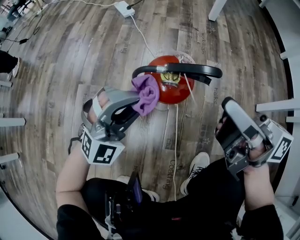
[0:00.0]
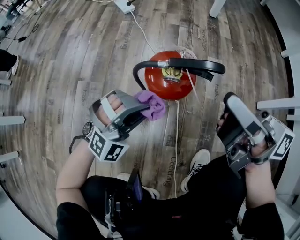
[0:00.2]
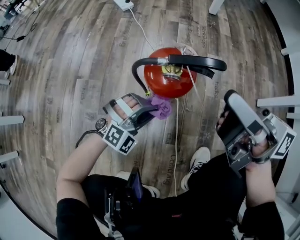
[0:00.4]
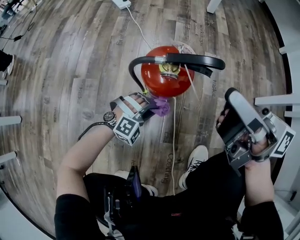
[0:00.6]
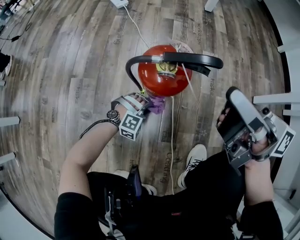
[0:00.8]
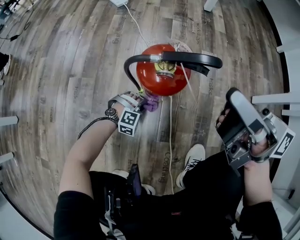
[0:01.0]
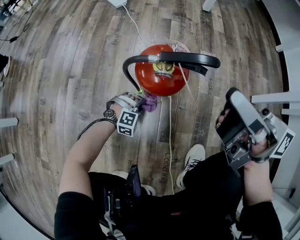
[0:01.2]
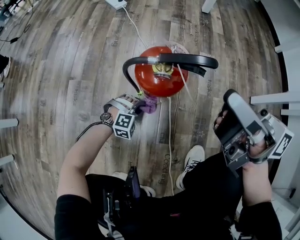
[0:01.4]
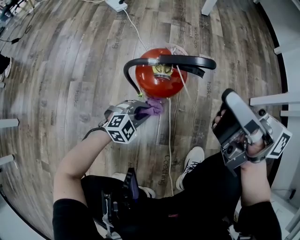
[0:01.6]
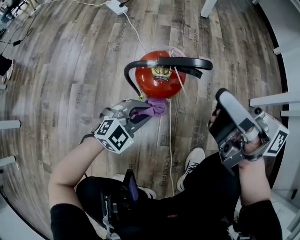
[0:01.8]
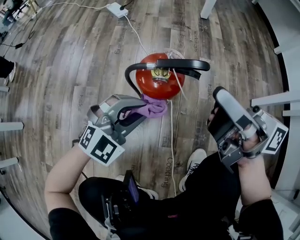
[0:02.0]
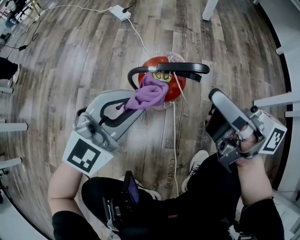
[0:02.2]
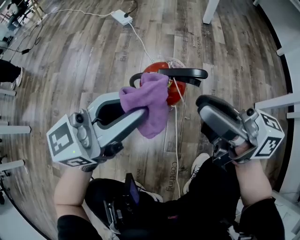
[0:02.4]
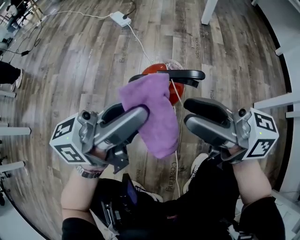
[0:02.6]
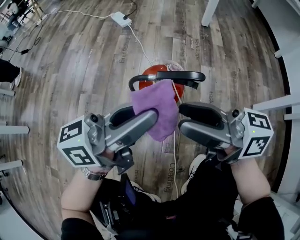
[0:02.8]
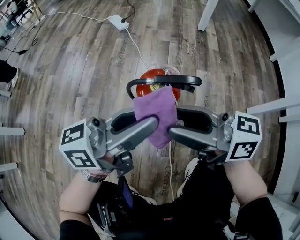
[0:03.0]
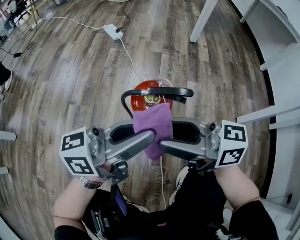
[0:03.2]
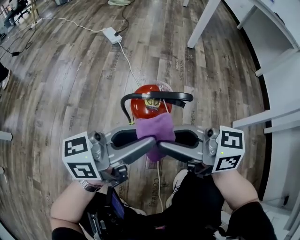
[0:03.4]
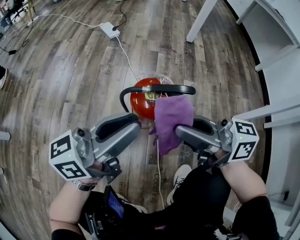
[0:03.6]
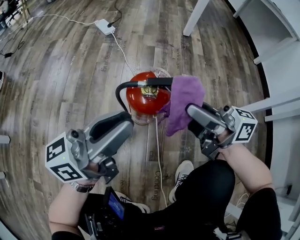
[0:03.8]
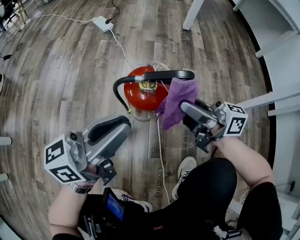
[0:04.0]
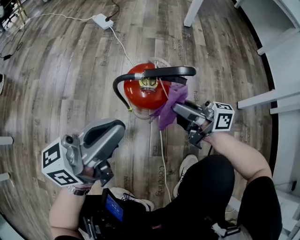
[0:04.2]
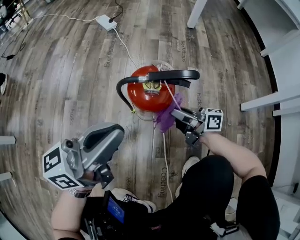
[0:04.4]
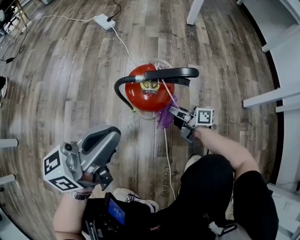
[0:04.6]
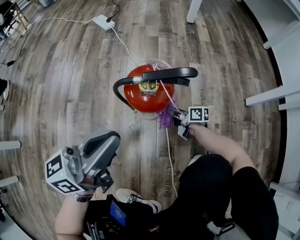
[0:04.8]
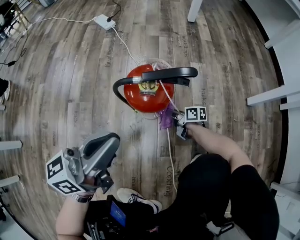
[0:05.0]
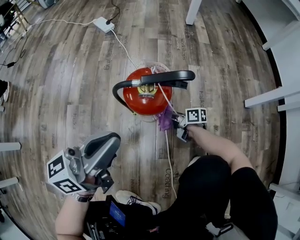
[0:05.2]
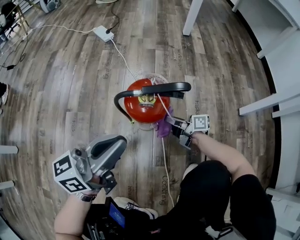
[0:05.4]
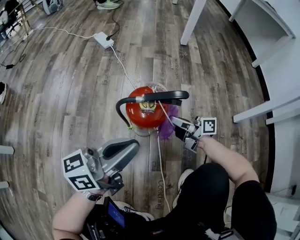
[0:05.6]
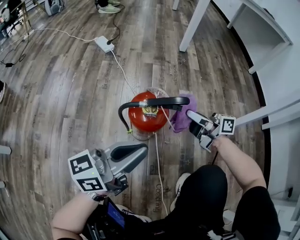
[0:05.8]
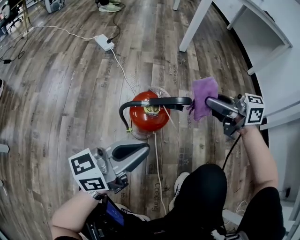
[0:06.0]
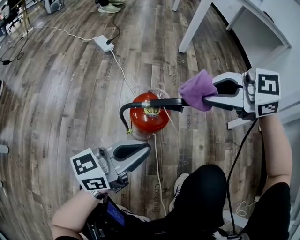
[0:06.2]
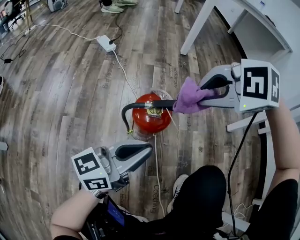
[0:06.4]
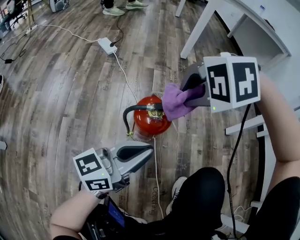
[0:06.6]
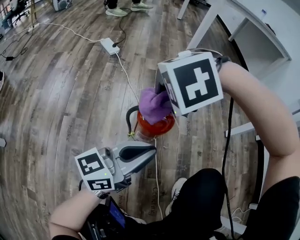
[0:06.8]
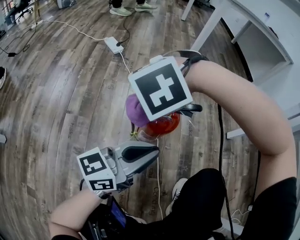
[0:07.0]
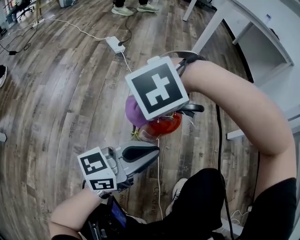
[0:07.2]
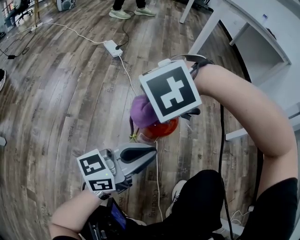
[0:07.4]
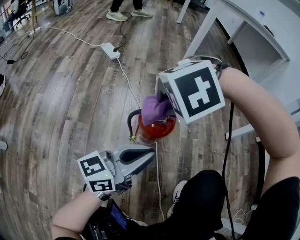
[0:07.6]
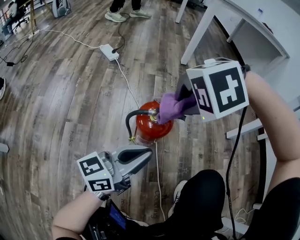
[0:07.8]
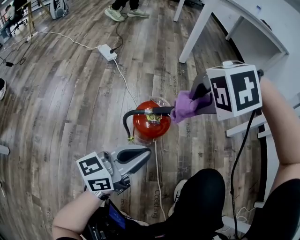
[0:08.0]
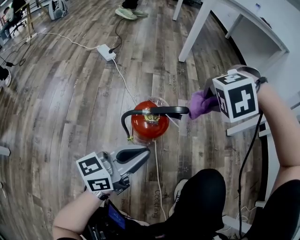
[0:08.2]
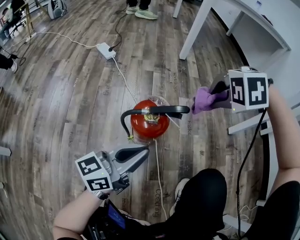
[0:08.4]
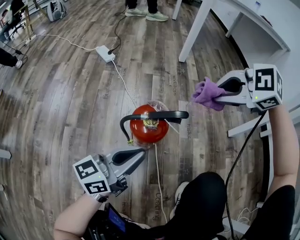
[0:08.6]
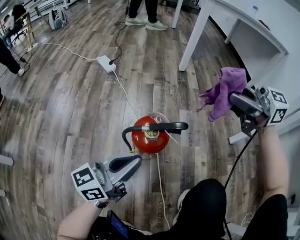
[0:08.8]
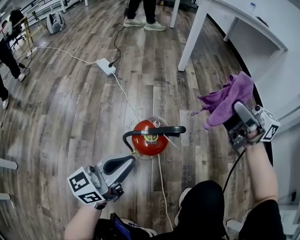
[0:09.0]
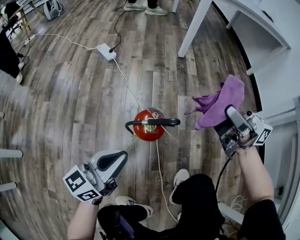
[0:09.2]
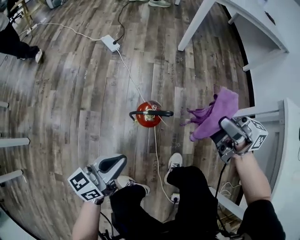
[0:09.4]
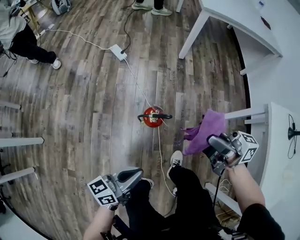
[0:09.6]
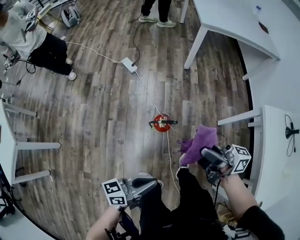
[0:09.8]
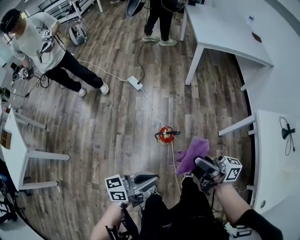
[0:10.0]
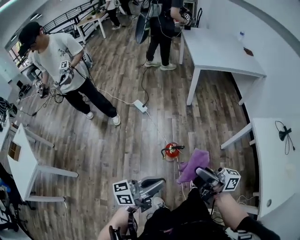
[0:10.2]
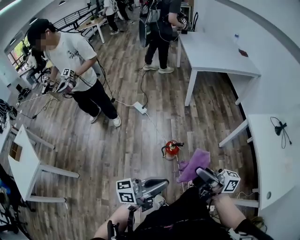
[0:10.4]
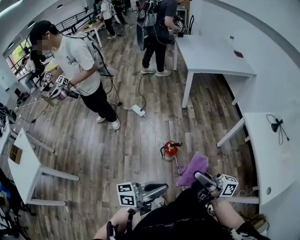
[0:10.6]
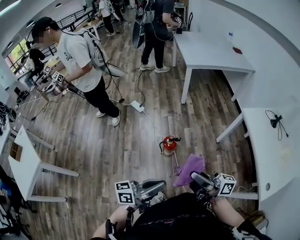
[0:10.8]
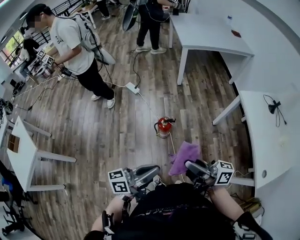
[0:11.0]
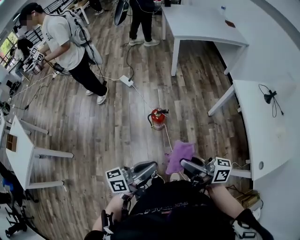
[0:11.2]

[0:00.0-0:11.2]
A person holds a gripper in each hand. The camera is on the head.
0:00.0 to 0:01.6: The left gripper moves downward, approximately 25 cm, and points its fingers approximately 30 degrees further downward.
0:01.6 to 0:03.2: The left gripper travels upward by some 35 cm, and points its fingers roughly 60 degrees further upward, while the right gripper shifts by roughly 10 cm, turns by approximately 30 degrees, and opens.
0:03.2 to 0:04.8: The right gripper travels downward by roughly 40 cm, rotates approximately 40 degrees, and closes up. The left gripper changes place by some 10 cm.
0:04.8 to 0:06.4: The right gripper goes some 40 cm upward, and rotates around the line of its fingers by approximately 90 degrees, counterclockwise from behind. The left gripper changes place by roughly 5 cm.
0:06.4 to 0:08.0: The right gripper turns by about 30 degrees.
0:08.0 to 0:09.6: The grippers both shift upward by some 35 cm. The right gripper angles its fingers upward, by approximately 100 degrees.
0:09.6 to 0:11.2: The right gripper goes roughly 35 cm backward and upward; the left gripper moves upward and backward, approximately 35 cm.

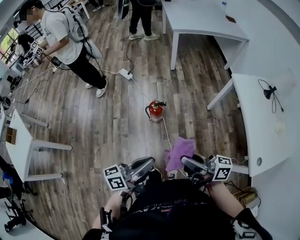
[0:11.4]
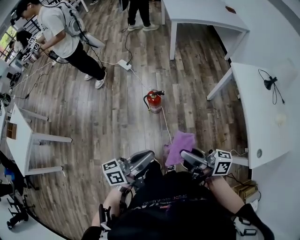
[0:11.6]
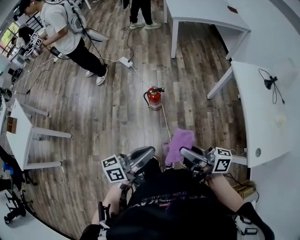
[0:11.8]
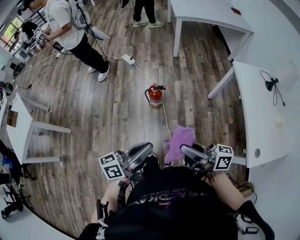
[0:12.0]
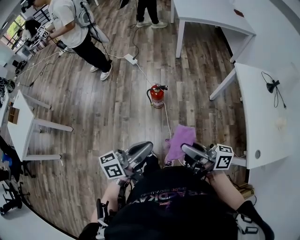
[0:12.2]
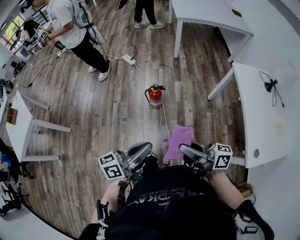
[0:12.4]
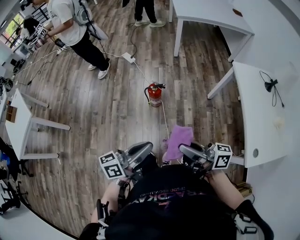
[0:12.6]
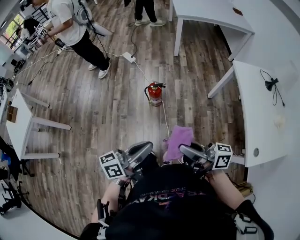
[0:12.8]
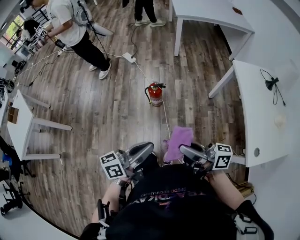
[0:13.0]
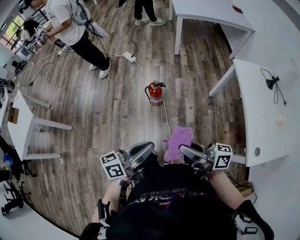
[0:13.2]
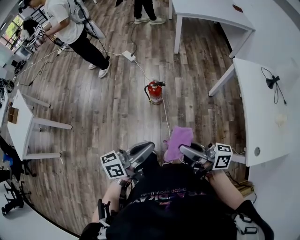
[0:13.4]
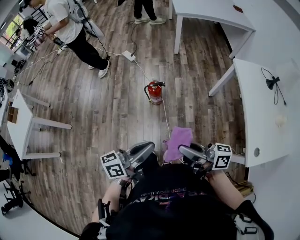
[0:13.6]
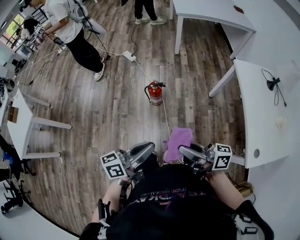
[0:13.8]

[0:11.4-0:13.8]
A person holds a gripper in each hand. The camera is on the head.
0:11.4 to 0:12.6: The right gripper changes place by some 5 cm, while the left gripper shifts by roughly 5 cm.
0:12.6 to 0:13.8: The grippers move only a little.

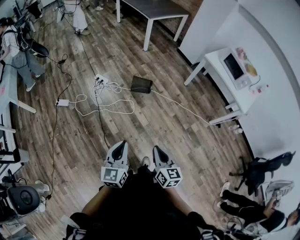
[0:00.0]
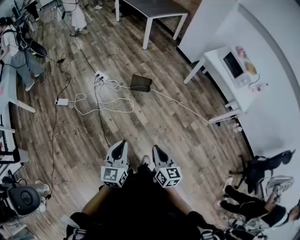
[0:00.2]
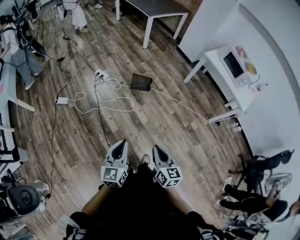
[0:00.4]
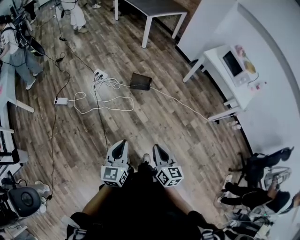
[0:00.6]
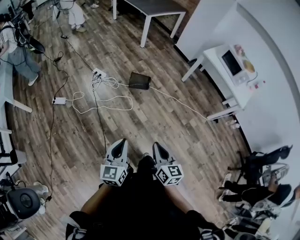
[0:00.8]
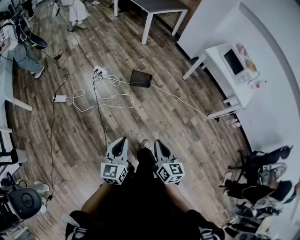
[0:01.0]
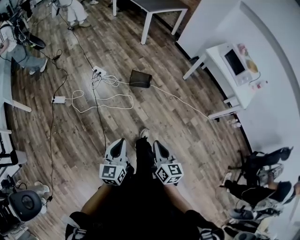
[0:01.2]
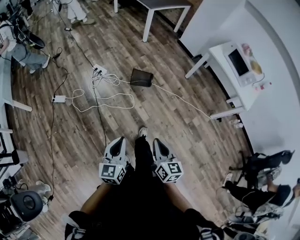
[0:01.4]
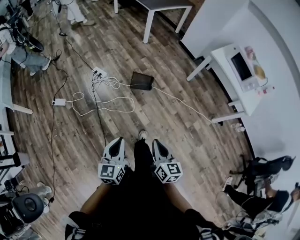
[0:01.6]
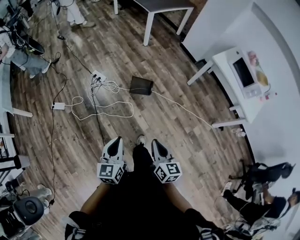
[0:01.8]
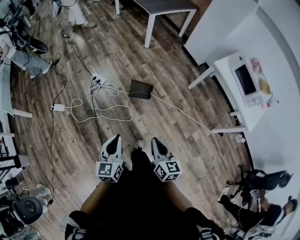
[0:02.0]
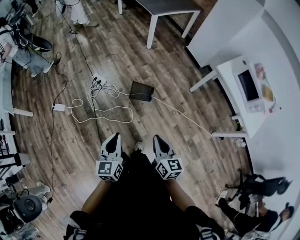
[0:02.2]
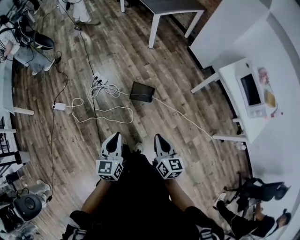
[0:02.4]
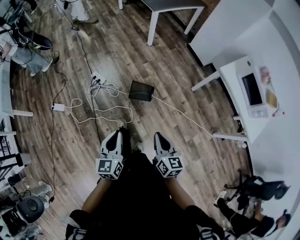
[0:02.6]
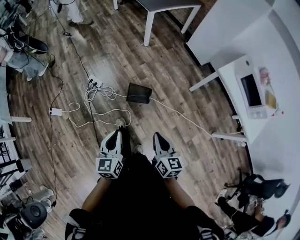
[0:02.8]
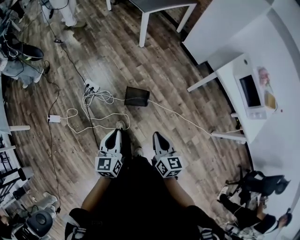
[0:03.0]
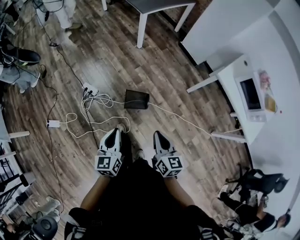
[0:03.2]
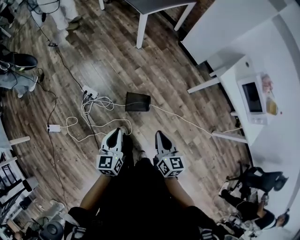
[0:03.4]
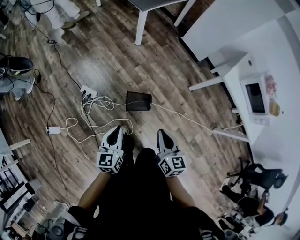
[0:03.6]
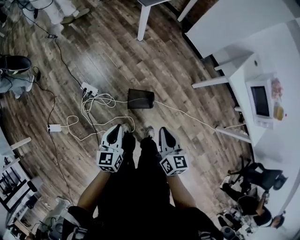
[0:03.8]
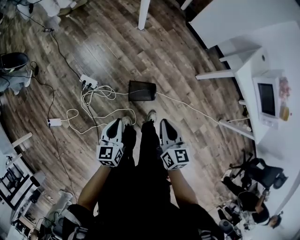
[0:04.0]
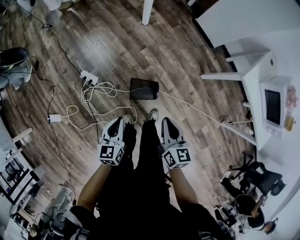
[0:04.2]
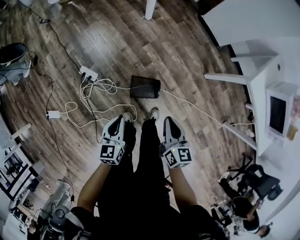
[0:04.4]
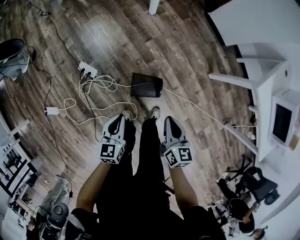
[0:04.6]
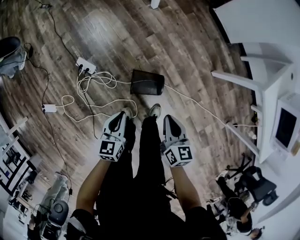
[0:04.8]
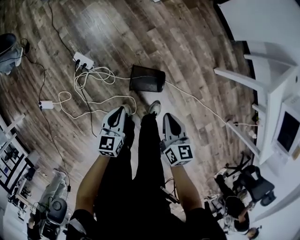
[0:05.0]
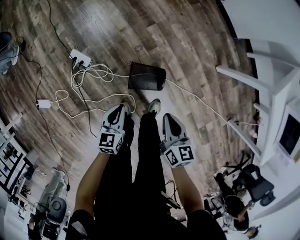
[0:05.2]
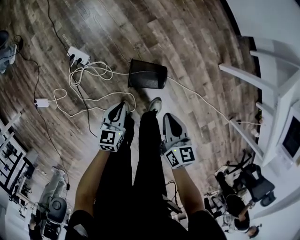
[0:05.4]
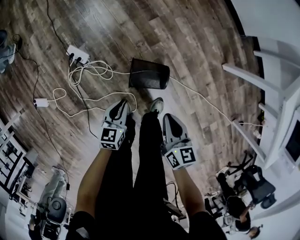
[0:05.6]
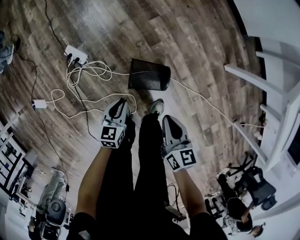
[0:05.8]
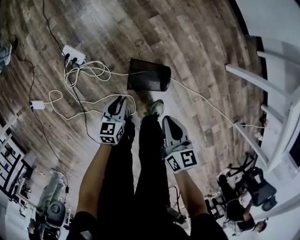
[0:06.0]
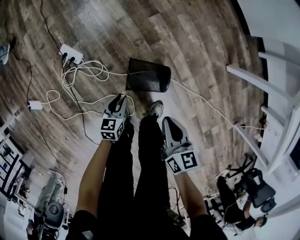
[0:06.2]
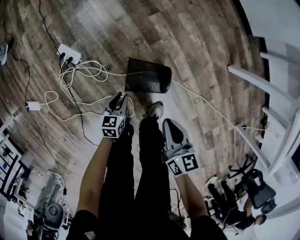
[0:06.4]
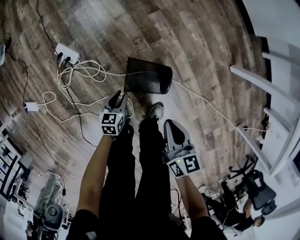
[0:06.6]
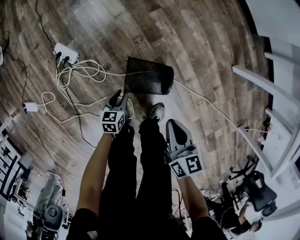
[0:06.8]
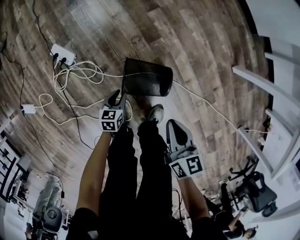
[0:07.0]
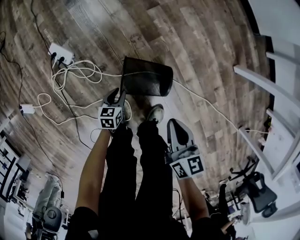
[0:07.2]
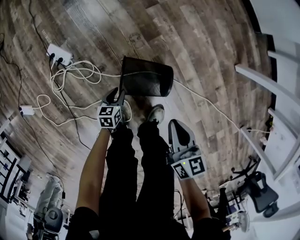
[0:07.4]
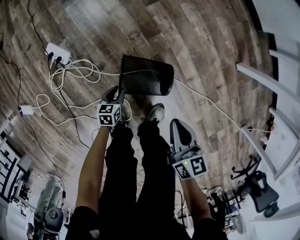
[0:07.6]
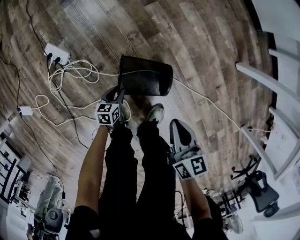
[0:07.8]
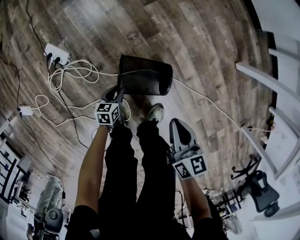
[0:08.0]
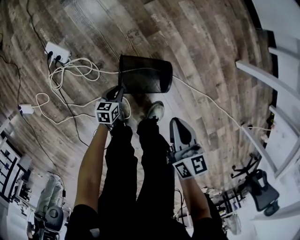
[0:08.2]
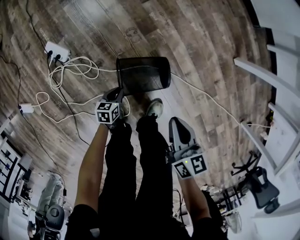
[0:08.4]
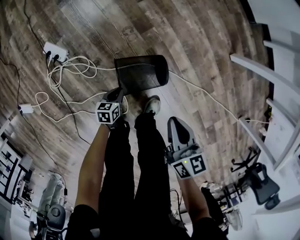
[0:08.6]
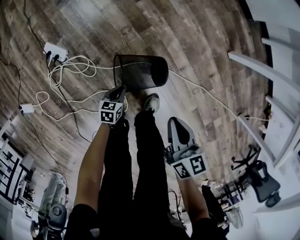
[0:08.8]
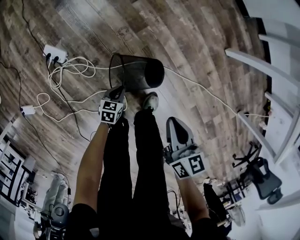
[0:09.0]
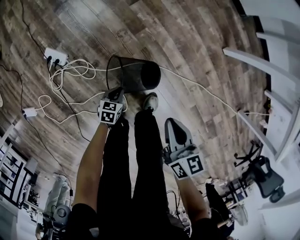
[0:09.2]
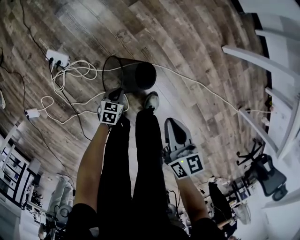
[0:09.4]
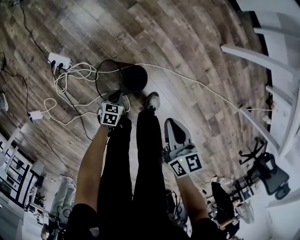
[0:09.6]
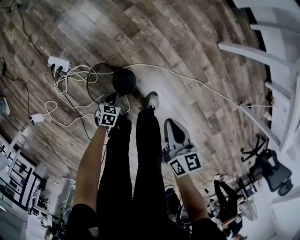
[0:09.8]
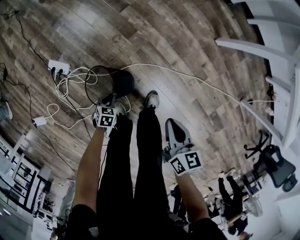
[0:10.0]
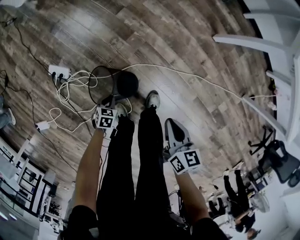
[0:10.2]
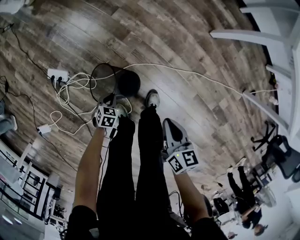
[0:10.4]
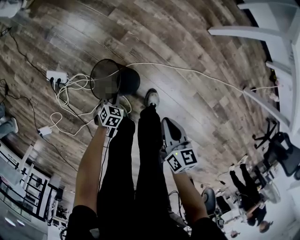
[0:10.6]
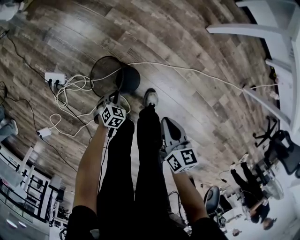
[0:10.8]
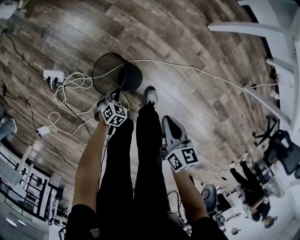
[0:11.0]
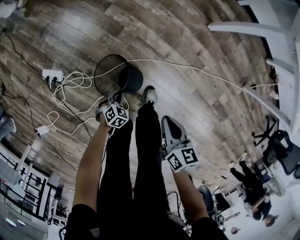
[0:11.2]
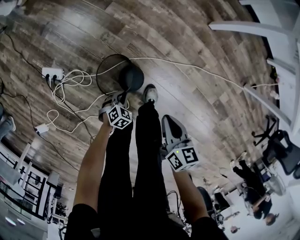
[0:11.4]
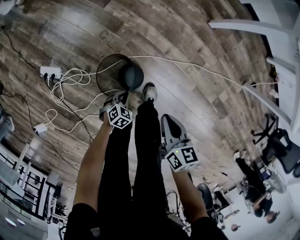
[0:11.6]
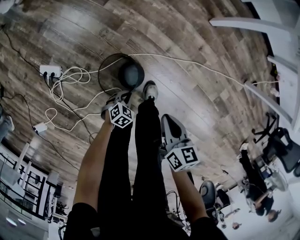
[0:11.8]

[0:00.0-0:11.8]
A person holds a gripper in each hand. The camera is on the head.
0:00.0 to 0:01.4: The two grippers go about 5 cm forward.
0:01.4 to 0:03.0: The two grippers travel together, forward, approximately 40 cm.
0:03.0 to 0:04.4: Both grippers travel together forward and downward, about 35 cm.
0:04.4 to 0:06.0: Both grippers move downward, about 30 cm.
0:06.0 to 0:07.4: The left gripper shifts approximately 25 cm downward. The right gripper moves downward, some 10 cm.
0:07.4 to 0:08.8: The right gripper heads upward, covering roughly 5 cm. The left gripper is displaced to the right by roughly 5 cm.
0:08.8 to 0:10.4: The left gripper travels upward by about 5 cm, and rotates roughly 40 degrees, while the right gripper goes some 10 cm backward and to the right.
0:10.4 to 0:11.8: The left gripper heads to the right, covering about 10 cm, and turns by roughly 30 degrees.
